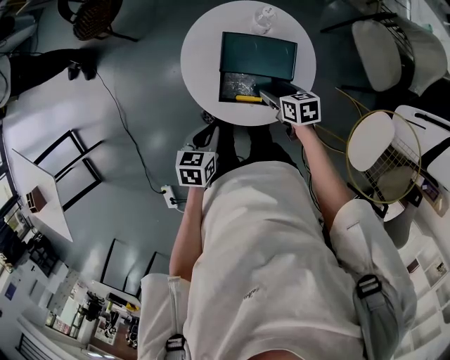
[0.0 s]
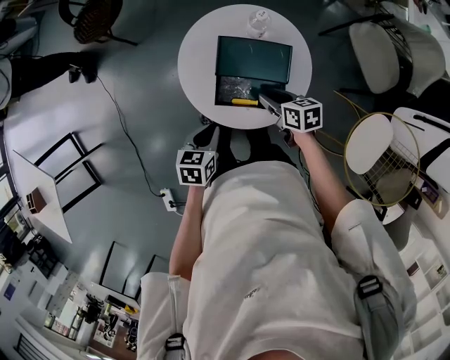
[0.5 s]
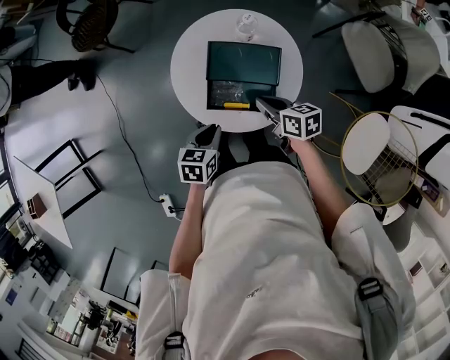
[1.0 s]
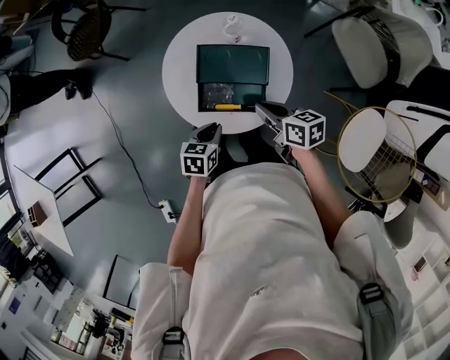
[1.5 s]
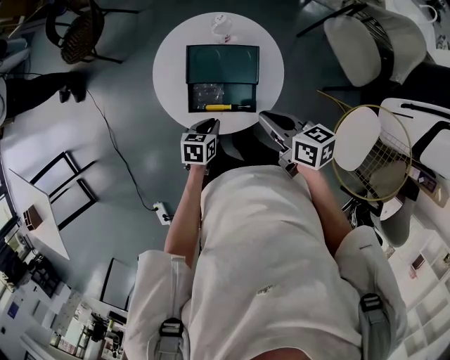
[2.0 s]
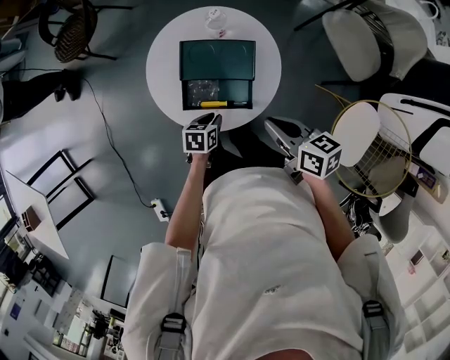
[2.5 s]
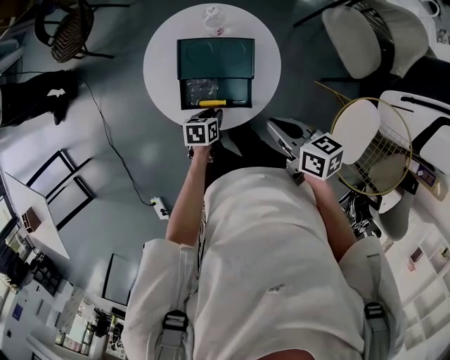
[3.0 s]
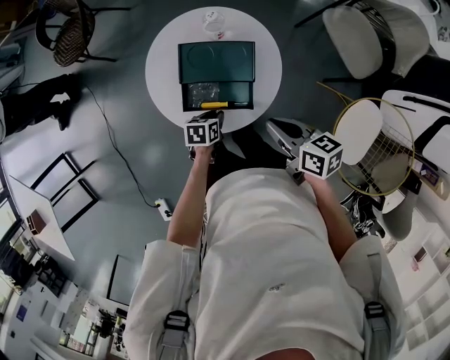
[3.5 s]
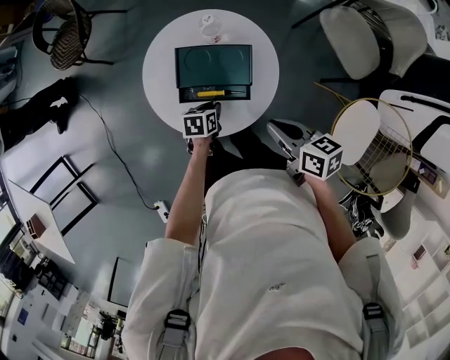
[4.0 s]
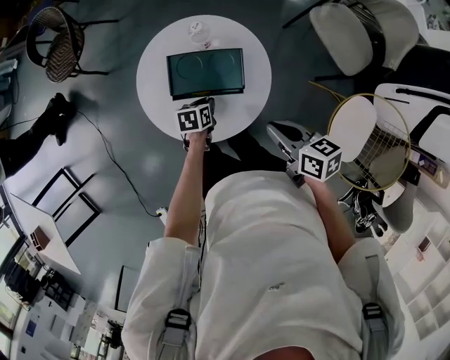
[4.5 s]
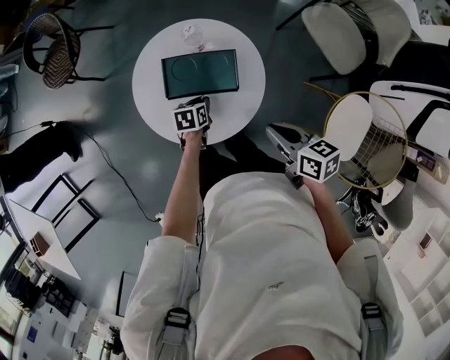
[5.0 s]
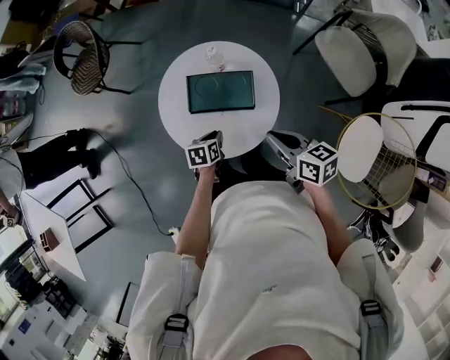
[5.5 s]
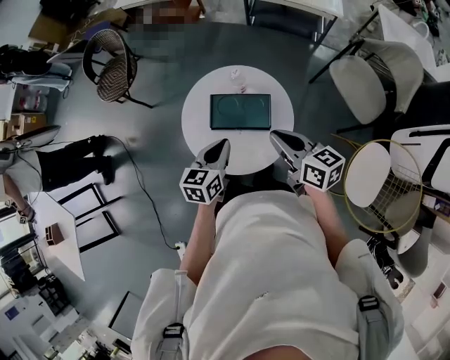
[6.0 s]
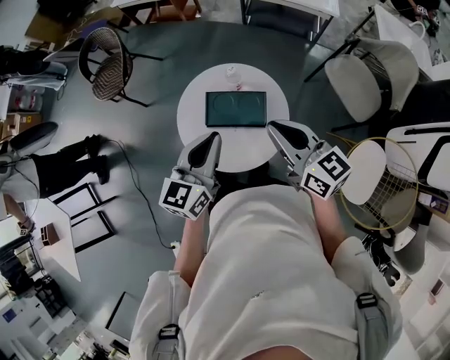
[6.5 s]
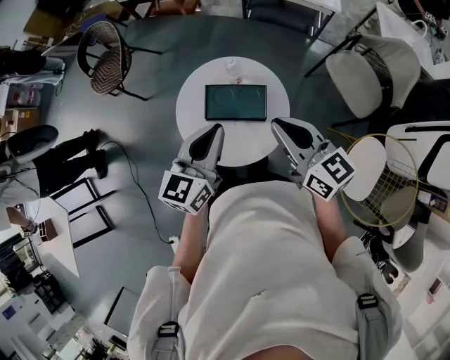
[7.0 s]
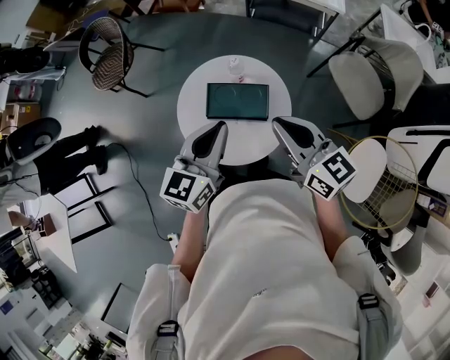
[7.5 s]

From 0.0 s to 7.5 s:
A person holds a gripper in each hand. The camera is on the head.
From 0.0 s to 2.0 s: The left gripper moves to the right and downward, about 15 cm. Meanwhile the right gripper travels upward and backward by some 15 cm, turns by some 20 degrees, and closes.
From 2.0 s to 4.0 s: The left gripper travels forward and downward by about 10 cm.
From 4.0 s to 5.5 s: The grippers stay close to where they were, moving slightly.
From 5.5 s to 7.5 s: The left gripper heads upward, covering roughly 35 cm, and tilts its fingers about 40 degrees upward. Meanwhile the right gripper shifts about 15 cm upward, and swivels about 30 degrees.

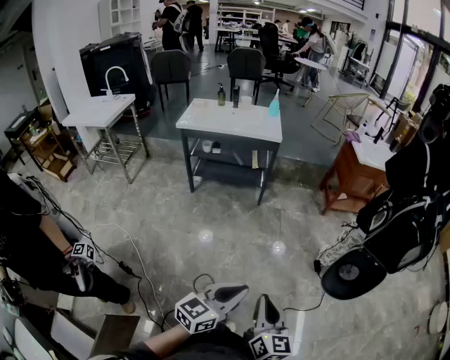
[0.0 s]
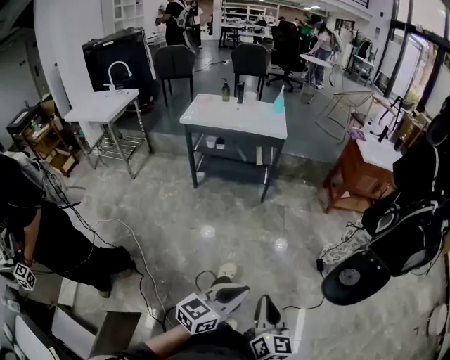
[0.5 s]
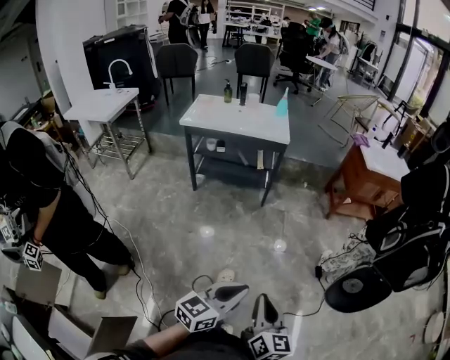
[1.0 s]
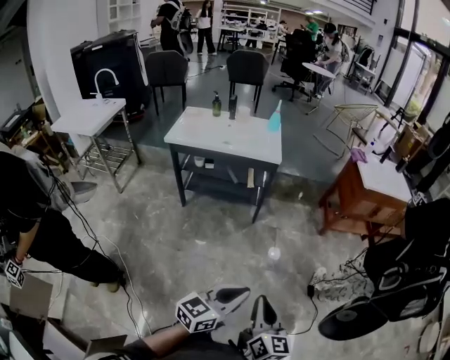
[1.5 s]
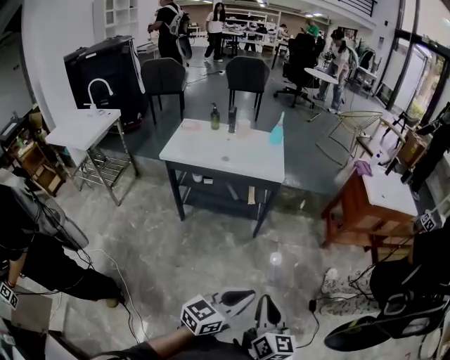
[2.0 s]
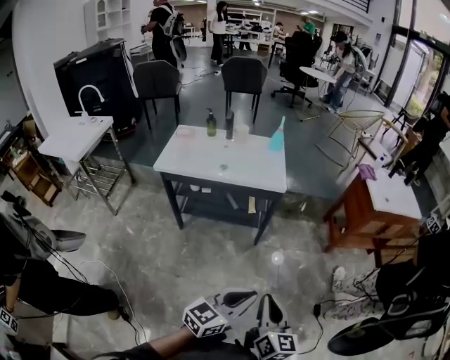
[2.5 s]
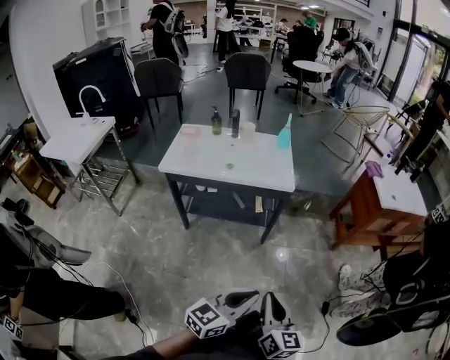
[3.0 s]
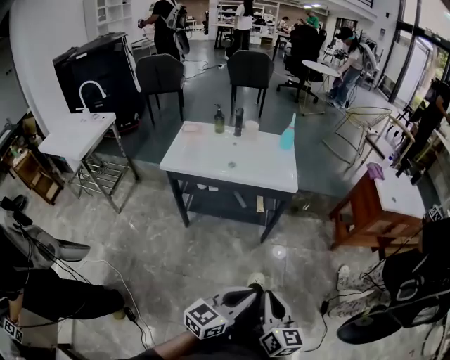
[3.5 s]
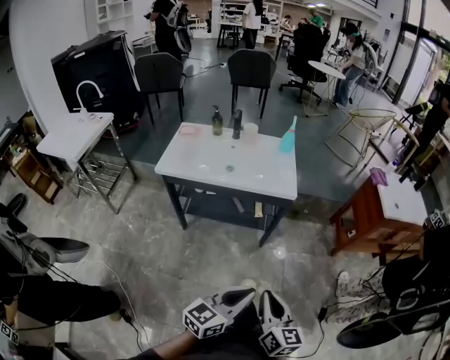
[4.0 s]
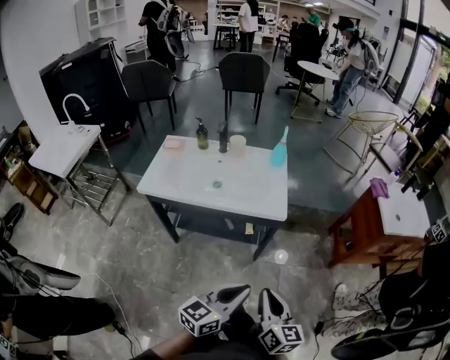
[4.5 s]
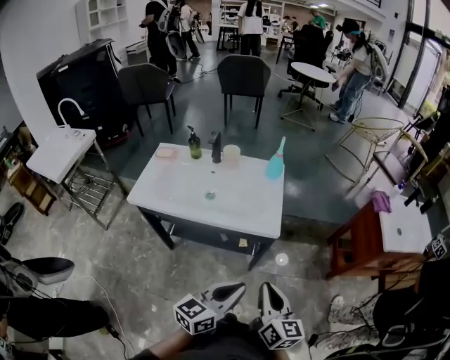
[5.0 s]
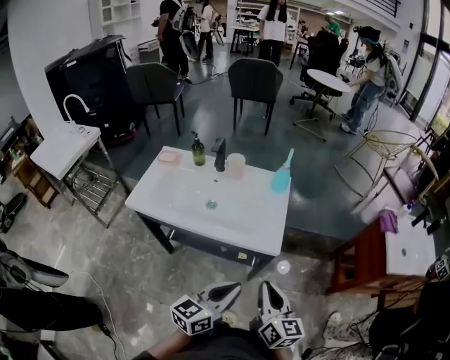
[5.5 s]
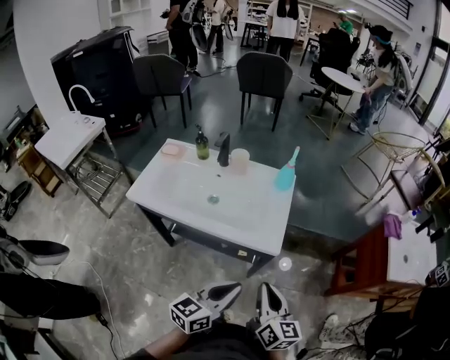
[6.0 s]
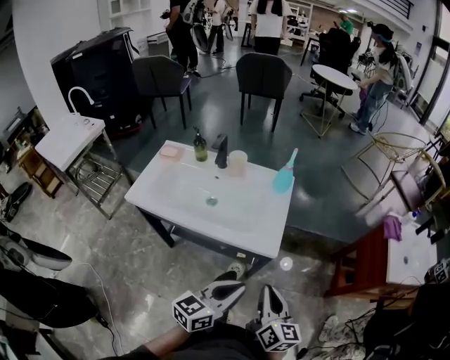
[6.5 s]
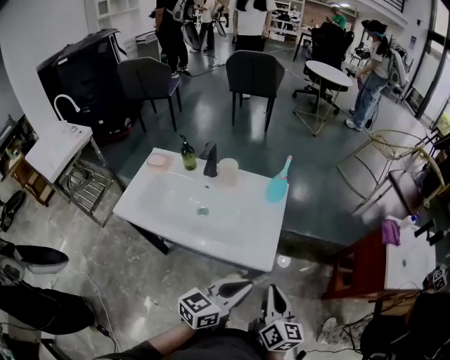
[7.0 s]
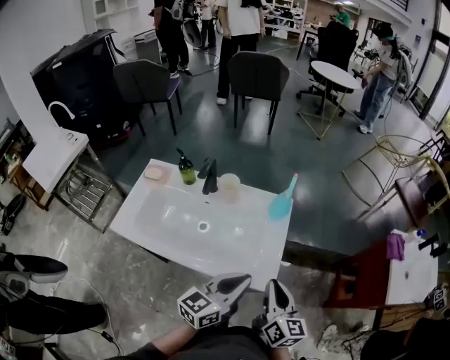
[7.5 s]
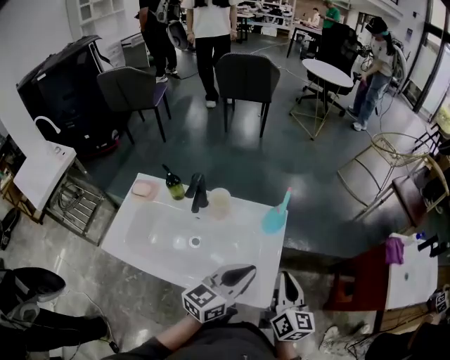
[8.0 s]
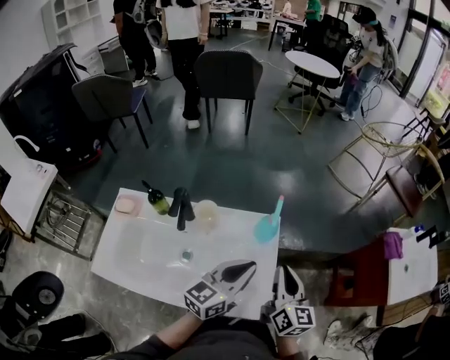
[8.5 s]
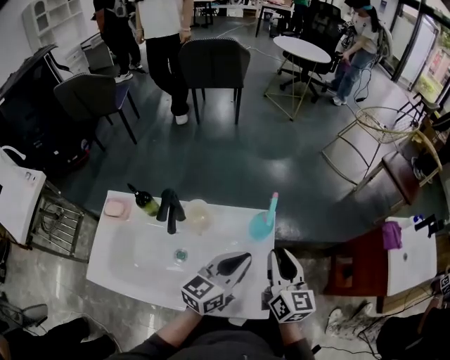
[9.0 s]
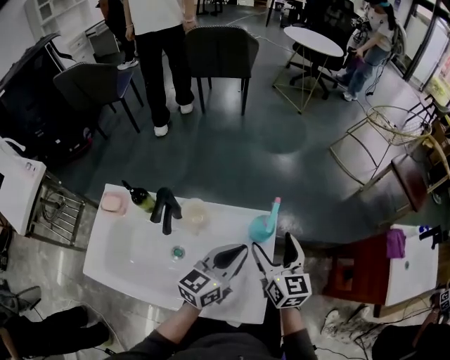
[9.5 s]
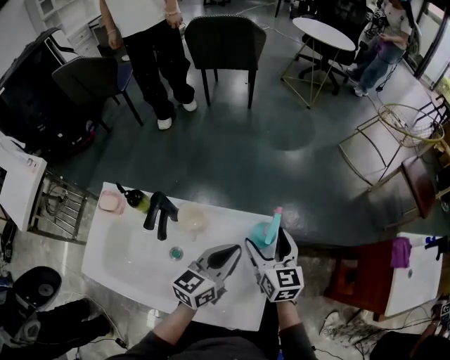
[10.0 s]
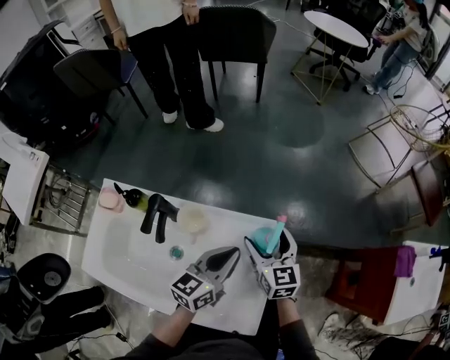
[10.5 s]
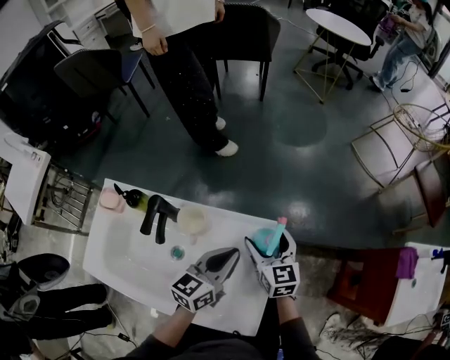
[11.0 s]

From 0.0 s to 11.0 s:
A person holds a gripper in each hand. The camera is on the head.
From 0.0 s to 2.0 s: Both grippers move forward, some 30 cm.
From 2.0 s to 3.5 s: The grippers both shift to the left and forward by about 15 cm.
From 3.5 s to 5.5 s: Both grippers move forward, roughly 35 cm.
From 5.5 s to 7.5 s: The grippers both shift forward by roughly 20 cm.
From 7.5 s to 9.0 s: Both grippers move forward, roughly 20 cm.
From 9.0 s to 11.0 s: The right gripper heads forward, downward and to the left, covering roughly 20 cm, changes its angle by roughly 30 degrees, and opens up, while the left gripper goes roughly 10 cm forward and downward.

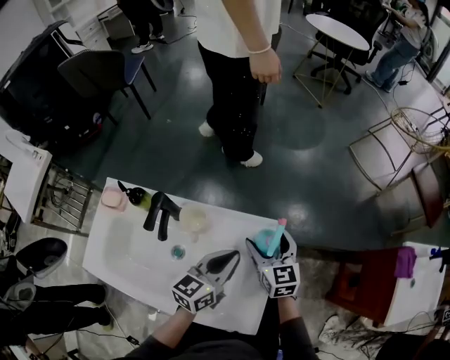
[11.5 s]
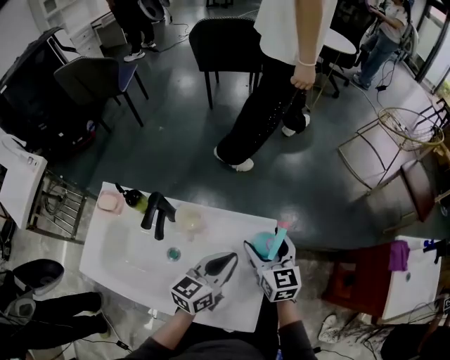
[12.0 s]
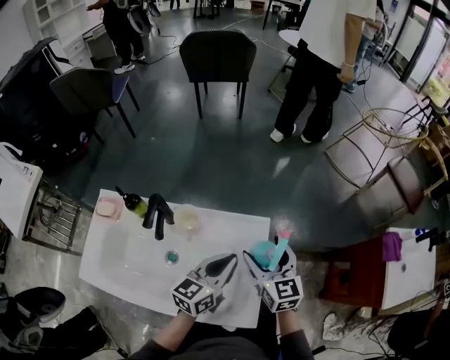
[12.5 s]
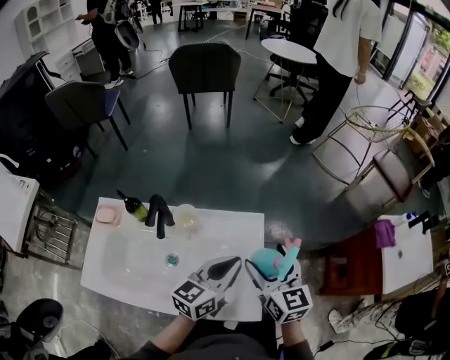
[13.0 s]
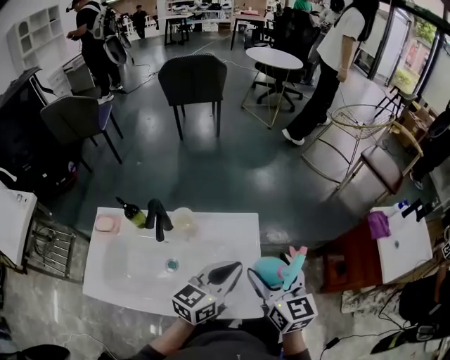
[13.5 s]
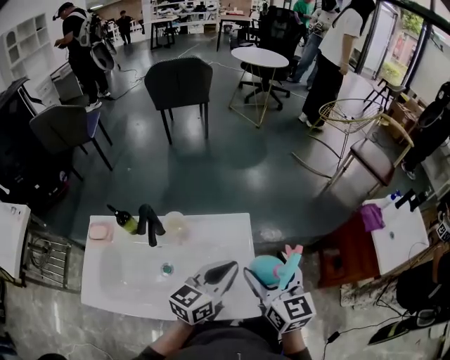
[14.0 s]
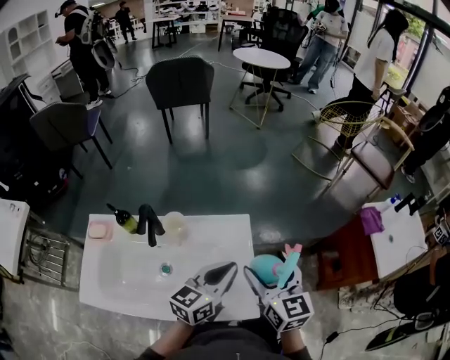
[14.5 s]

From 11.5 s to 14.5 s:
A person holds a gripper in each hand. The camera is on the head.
From 11.5 s to 13.0 s: The left gripper heads backward and upward, covering some 10 cm; the right gripper shifts approximately 15 cm backward and upward.
From 13.0 s to 14.5 s: The right gripper changes place by roughly 5 cm.

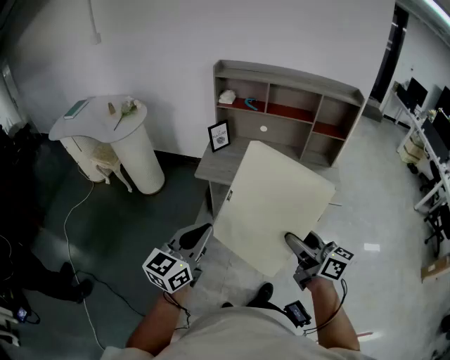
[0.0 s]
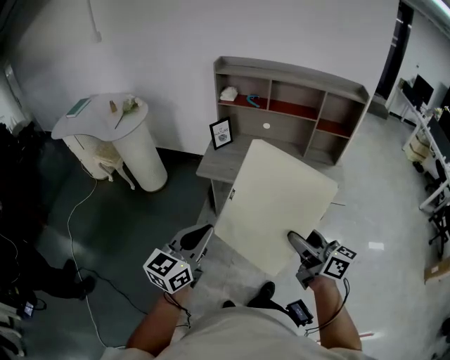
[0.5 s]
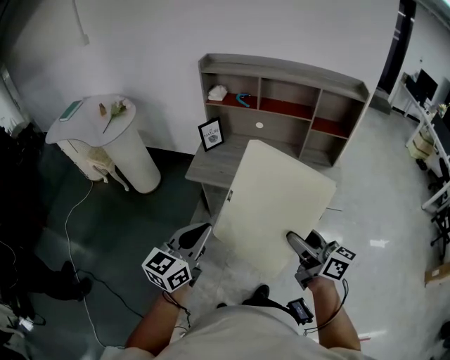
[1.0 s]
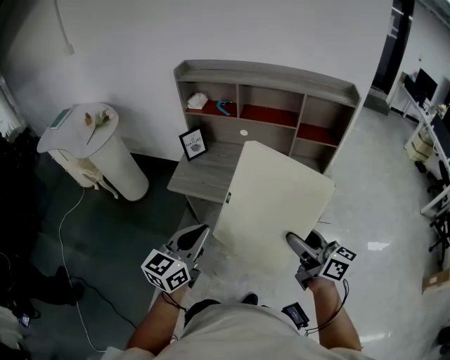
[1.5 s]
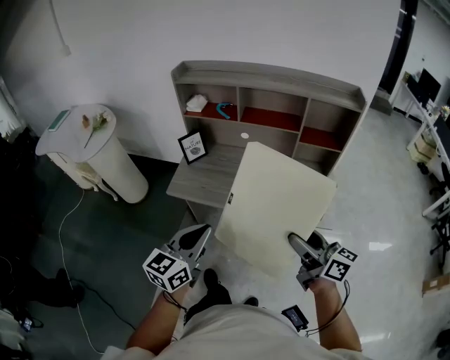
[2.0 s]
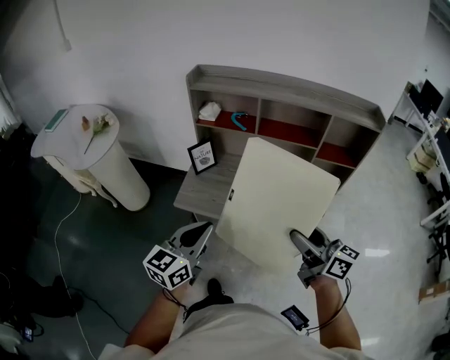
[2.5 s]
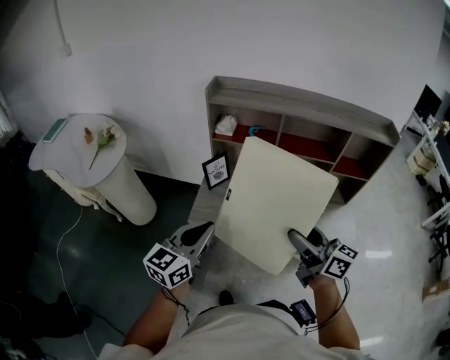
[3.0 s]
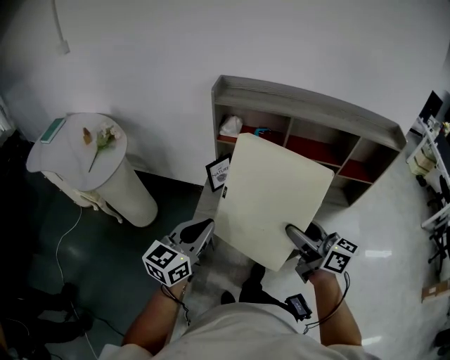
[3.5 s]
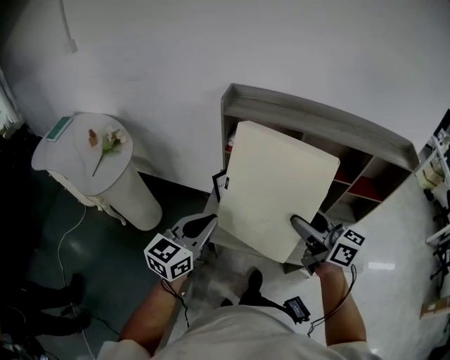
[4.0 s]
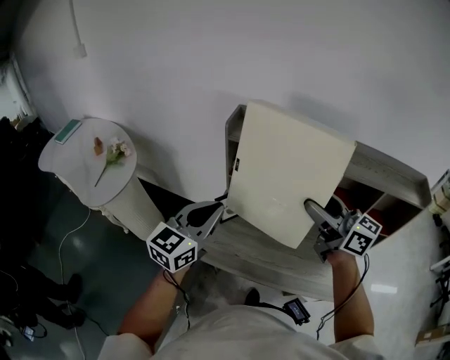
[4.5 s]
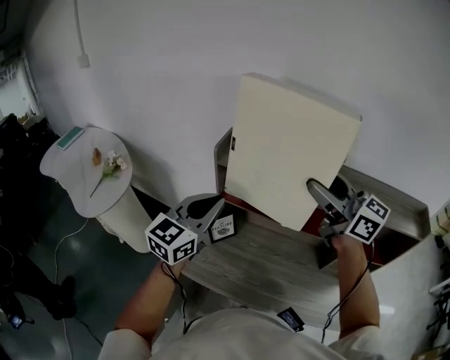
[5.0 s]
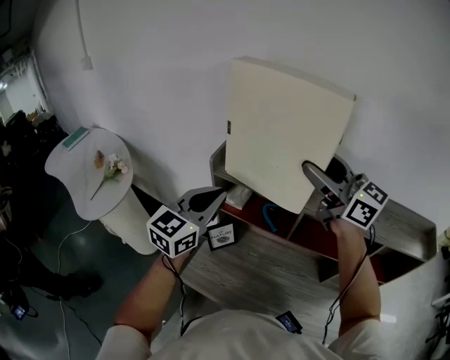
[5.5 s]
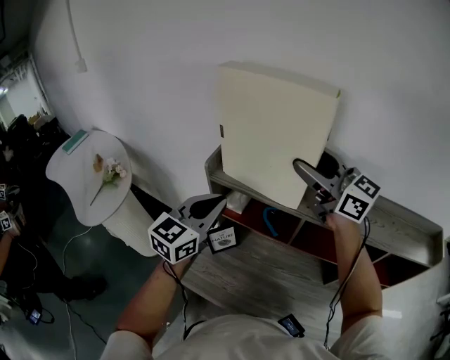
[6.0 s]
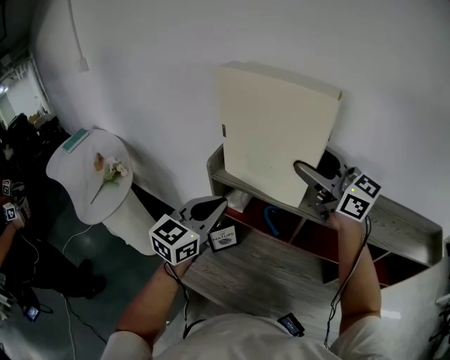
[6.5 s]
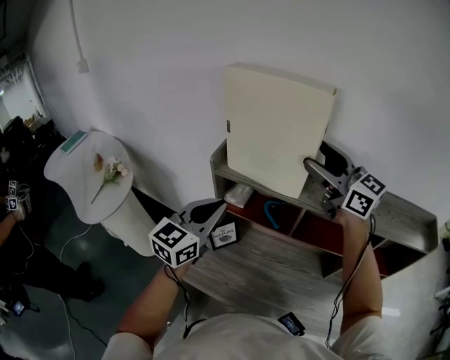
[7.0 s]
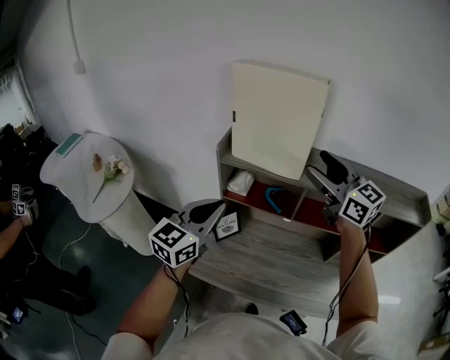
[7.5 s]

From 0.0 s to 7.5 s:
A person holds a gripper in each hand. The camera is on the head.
From 0.0 s to 2.0 s: The two grippers go roughly 30 cm to the right and forward.
From 2.0 s to 4.0 s: The grippers both shift forward and to the left by about 35 cm.
From 4.0 s to 5.5 s: The right gripper heads forward and upward, covering approximately 35 cm, and turns by roughly 30 degrees, while the left gripper moves forward, upward and to the right, some 30 cm.
From 5.5 s to 7.5 s: The two grippers go about 5 cm backward.
